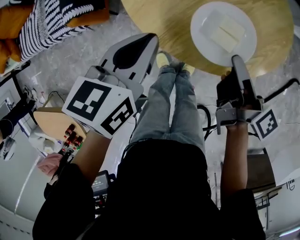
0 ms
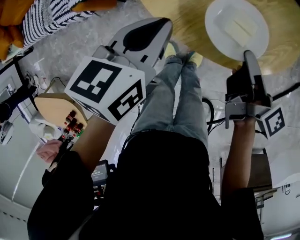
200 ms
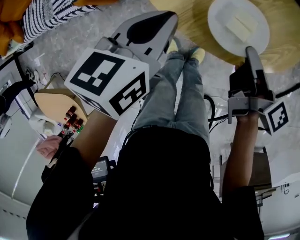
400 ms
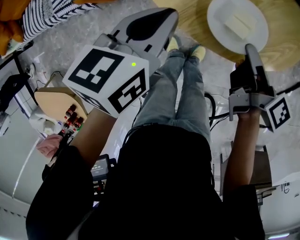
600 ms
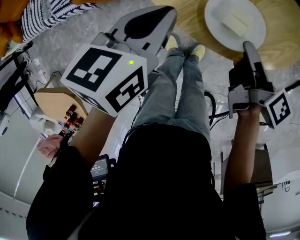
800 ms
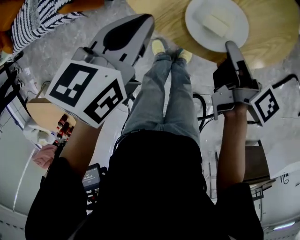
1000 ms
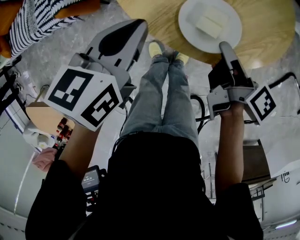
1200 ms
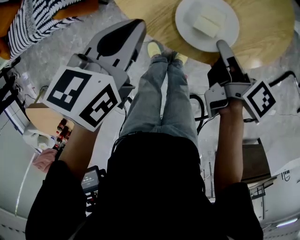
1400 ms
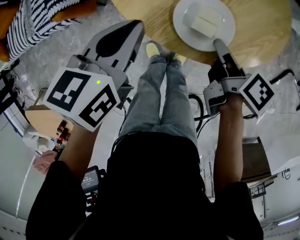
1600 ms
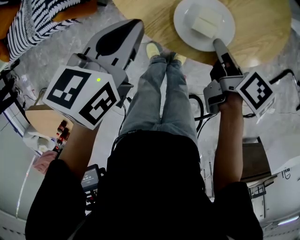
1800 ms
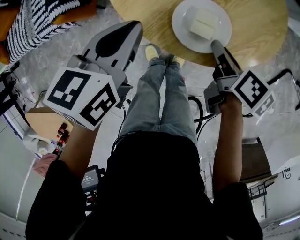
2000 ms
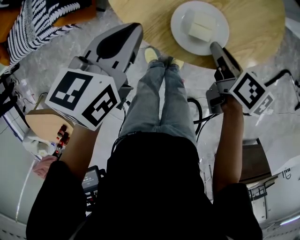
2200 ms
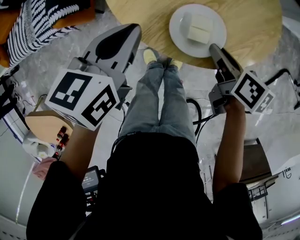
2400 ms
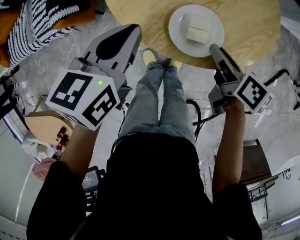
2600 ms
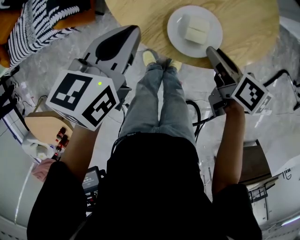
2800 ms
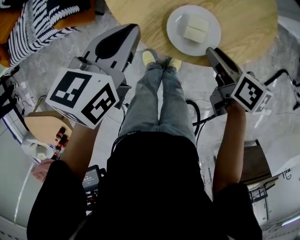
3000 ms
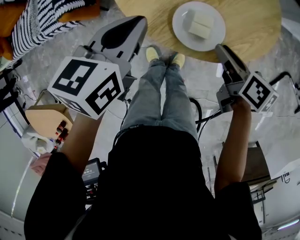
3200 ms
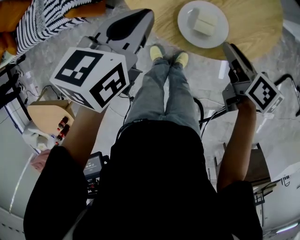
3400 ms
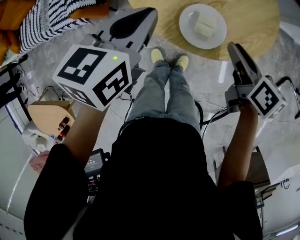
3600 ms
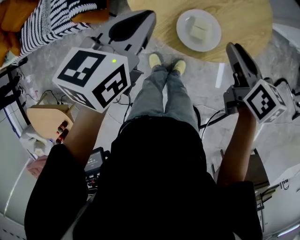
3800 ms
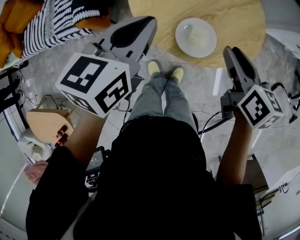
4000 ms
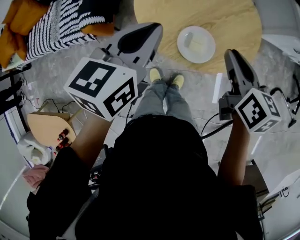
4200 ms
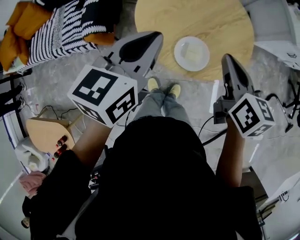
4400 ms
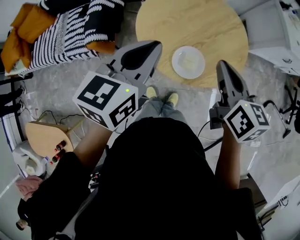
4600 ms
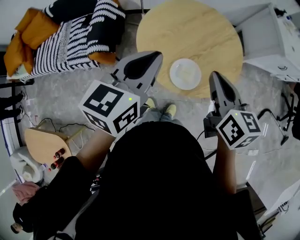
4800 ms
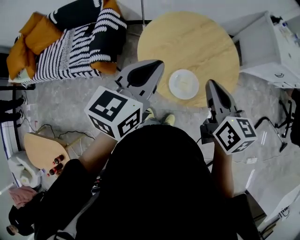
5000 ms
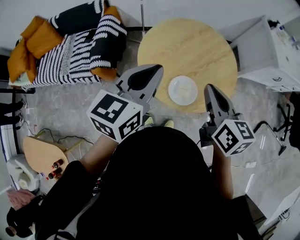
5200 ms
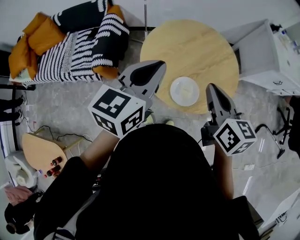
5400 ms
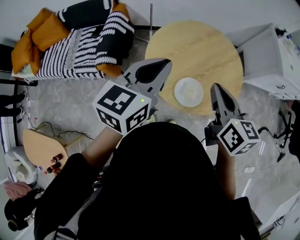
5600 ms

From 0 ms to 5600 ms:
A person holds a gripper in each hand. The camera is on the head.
From 0 ms to 1400 ms: There are only small adjustments of the grippers.
From 1400 ms to 2800 ms: The right gripper changes its angle by approximately 30 degrees, and opens up.
From 2800 ms to 4200 ms: Both grippers move upward, roughly 15 cm. The right gripper swivels about 30 degrees.
From 4200 ms to 5600 ms: Both grippers move upward, about 10 cm.

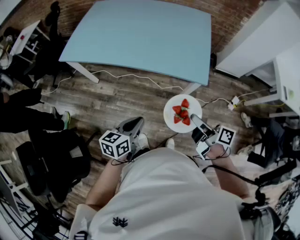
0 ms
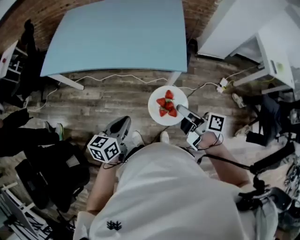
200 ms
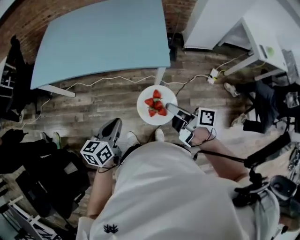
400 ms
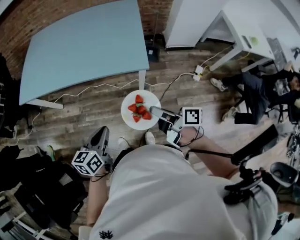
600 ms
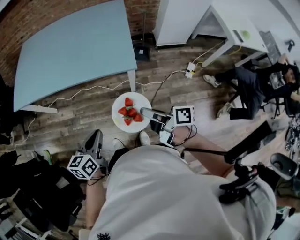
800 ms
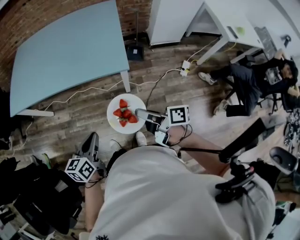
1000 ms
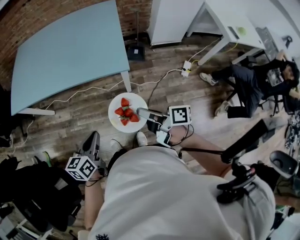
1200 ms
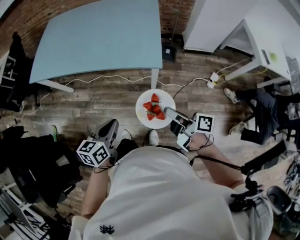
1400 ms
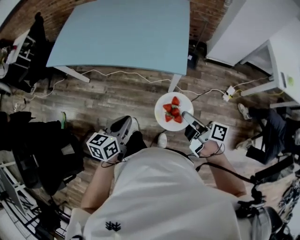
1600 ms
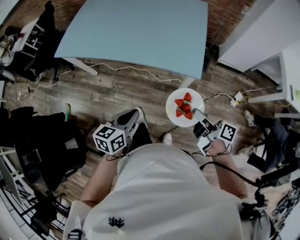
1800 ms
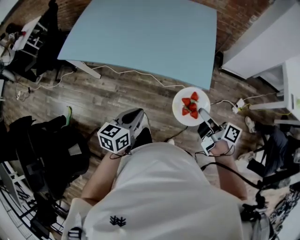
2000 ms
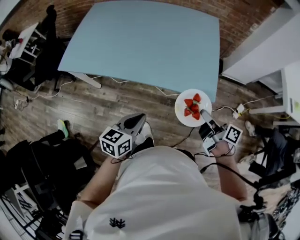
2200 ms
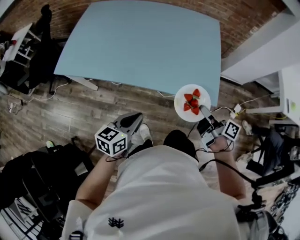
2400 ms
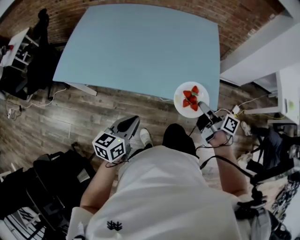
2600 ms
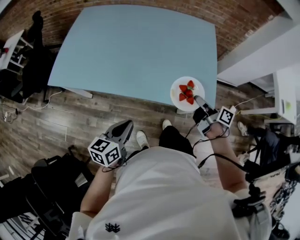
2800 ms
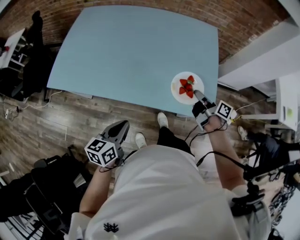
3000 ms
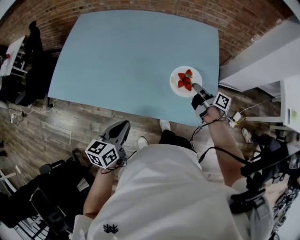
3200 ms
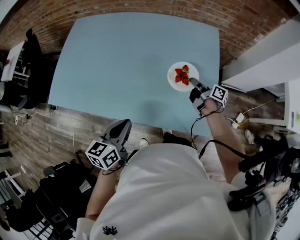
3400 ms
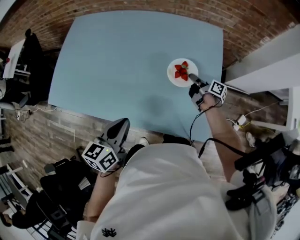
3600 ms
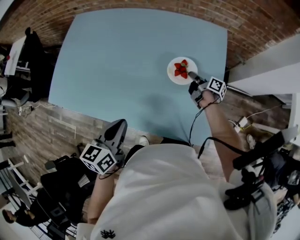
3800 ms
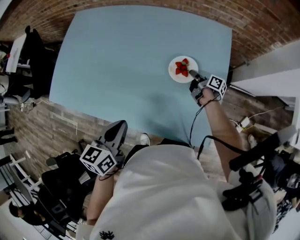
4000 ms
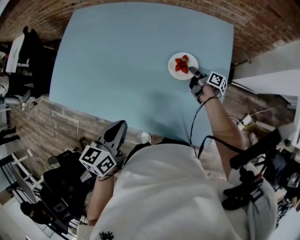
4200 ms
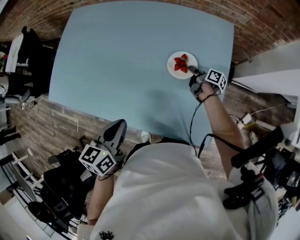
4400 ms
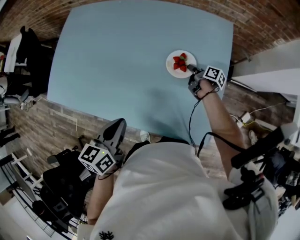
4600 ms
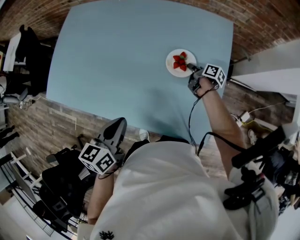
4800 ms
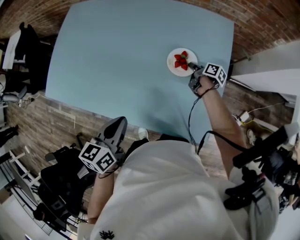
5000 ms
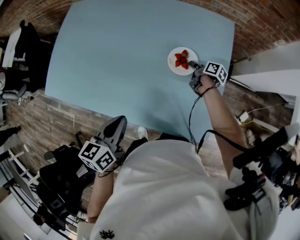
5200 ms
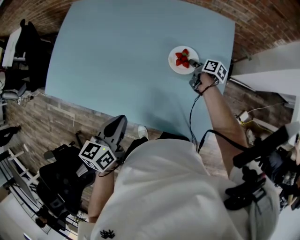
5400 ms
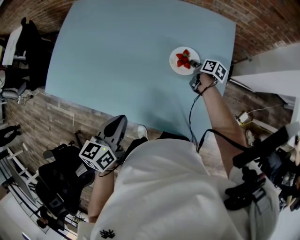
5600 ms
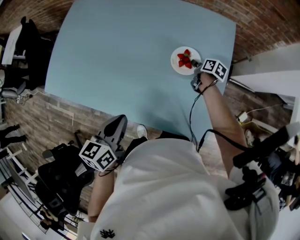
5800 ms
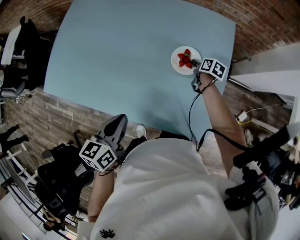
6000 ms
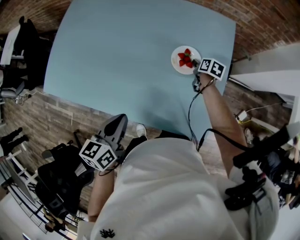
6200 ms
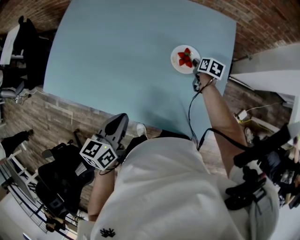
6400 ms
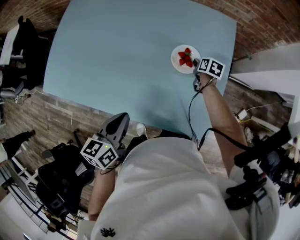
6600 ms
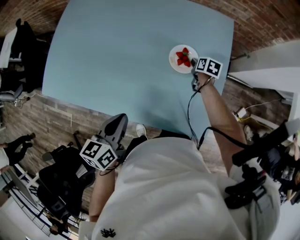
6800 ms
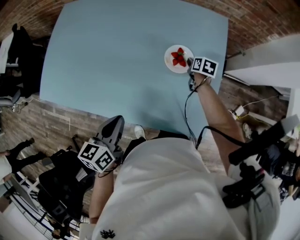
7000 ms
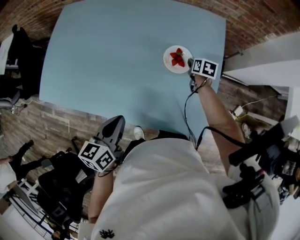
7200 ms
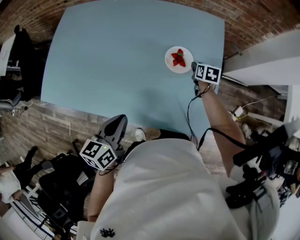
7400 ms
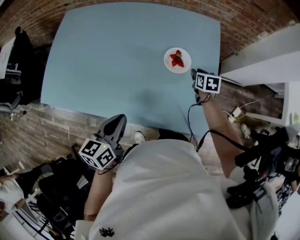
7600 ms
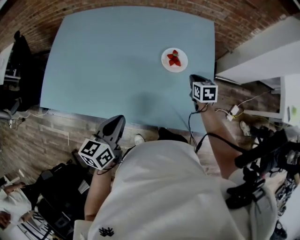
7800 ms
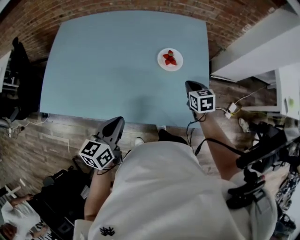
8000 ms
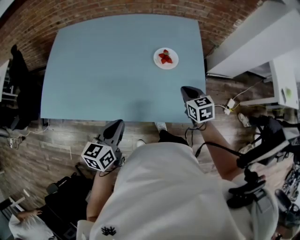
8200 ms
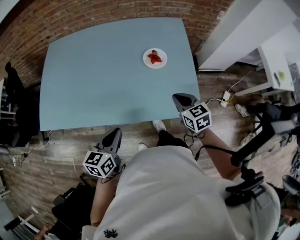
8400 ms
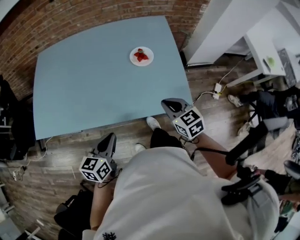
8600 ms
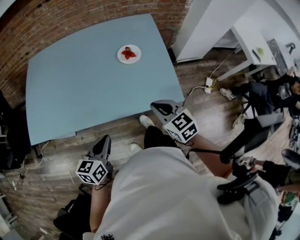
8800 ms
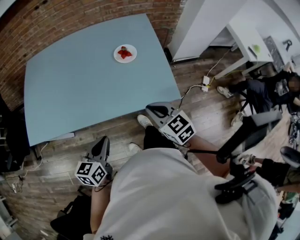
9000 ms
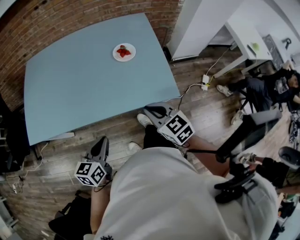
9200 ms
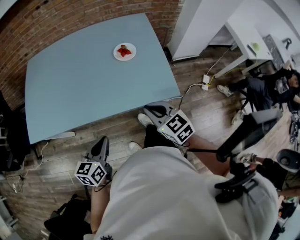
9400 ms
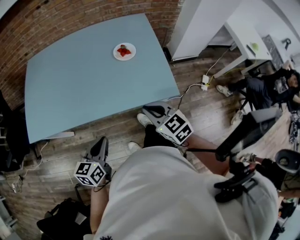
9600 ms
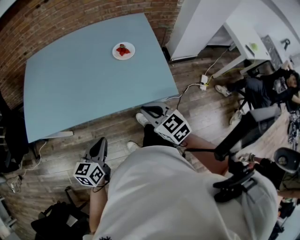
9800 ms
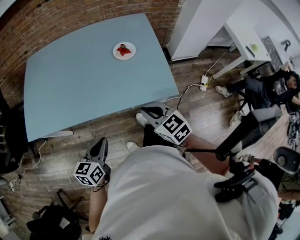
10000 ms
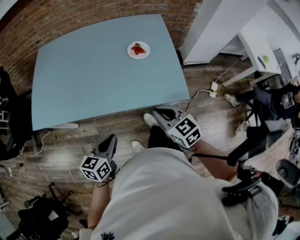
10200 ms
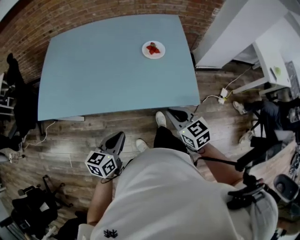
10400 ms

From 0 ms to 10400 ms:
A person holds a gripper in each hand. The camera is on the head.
From 0 ms to 1400 ms: Both grippers travel together to the right, roughly 15 cm.
From 1400 ms to 3000 ms: The right gripper moves forward, approximately 40 cm. Meanwhile the left gripper travels forward and to the left by about 35 cm.
From 3000 ms to 4400 ms: The right gripper shifts roughly 30 cm forward and downward. The left gripper moves forward and to the right, roughly 20 cm.
From 4400 ms to 6000 ms: The right gripper swivels about 40 degrees, and opens its fingers.
From 6000 ms to 7400 ms: The right gripper shifts by roughly 5 cm, and rotates about 20 degrees.
From 7400 ms to 9000 ms: The right gripper shifts approximately 50 cm backward and upward, rotates roughly 40 degrees, and closes, while the left gripper travels backward by approximately 15 cm.
From 9000 ms to 10400 ms: The grippers stay close to where they were, moving slightly.

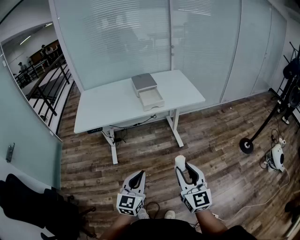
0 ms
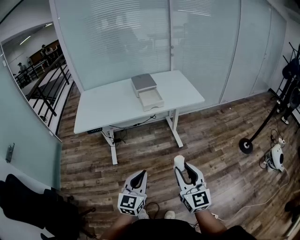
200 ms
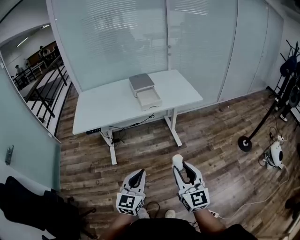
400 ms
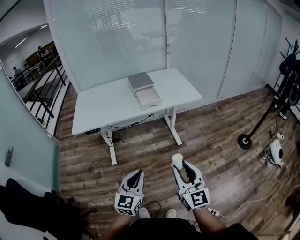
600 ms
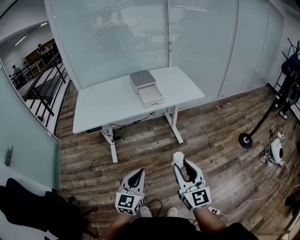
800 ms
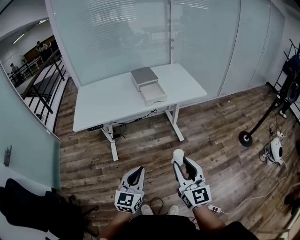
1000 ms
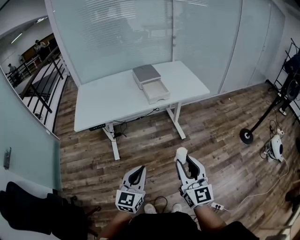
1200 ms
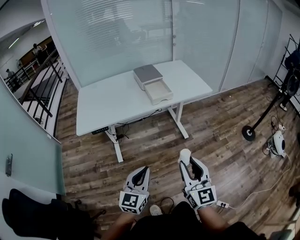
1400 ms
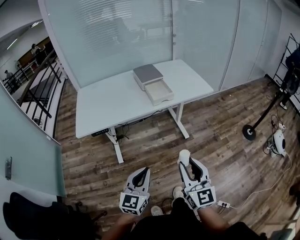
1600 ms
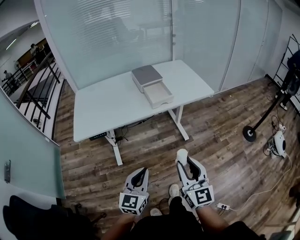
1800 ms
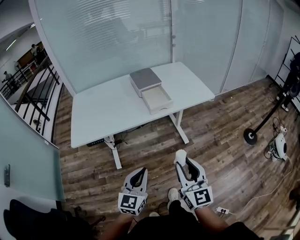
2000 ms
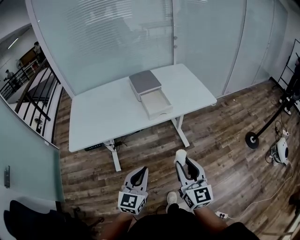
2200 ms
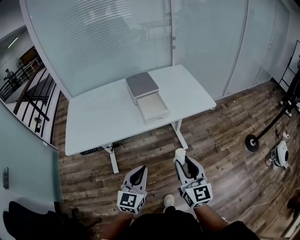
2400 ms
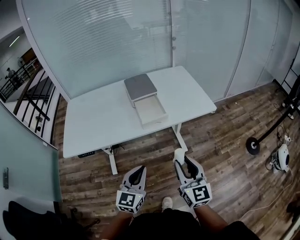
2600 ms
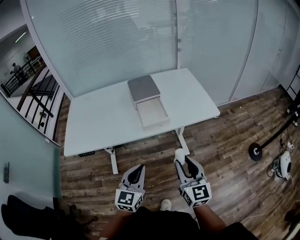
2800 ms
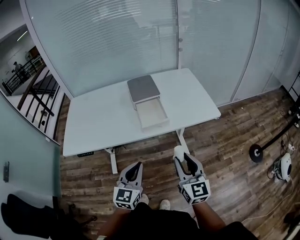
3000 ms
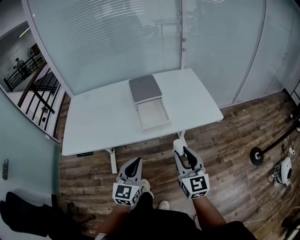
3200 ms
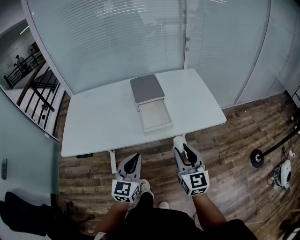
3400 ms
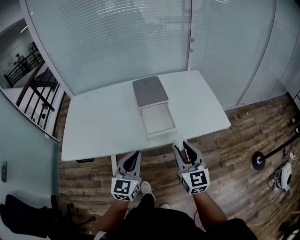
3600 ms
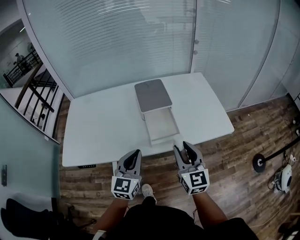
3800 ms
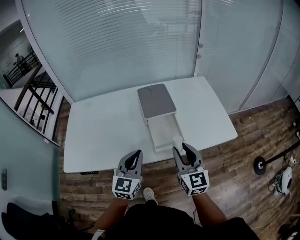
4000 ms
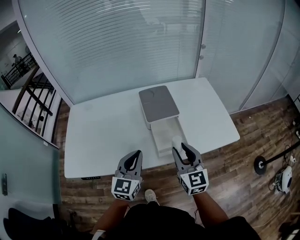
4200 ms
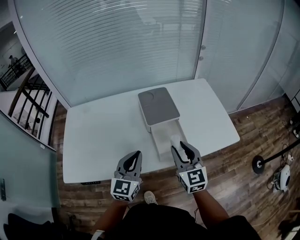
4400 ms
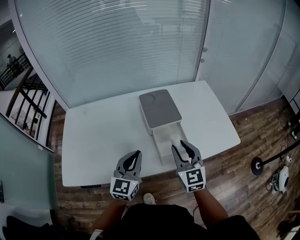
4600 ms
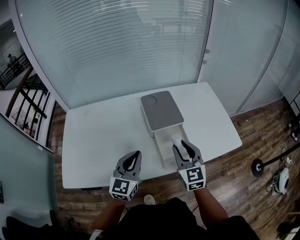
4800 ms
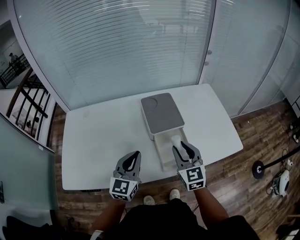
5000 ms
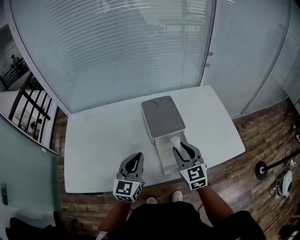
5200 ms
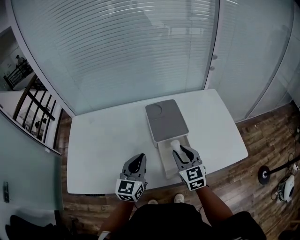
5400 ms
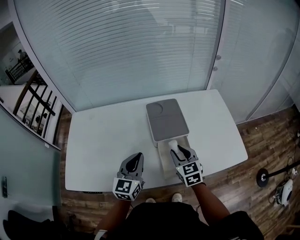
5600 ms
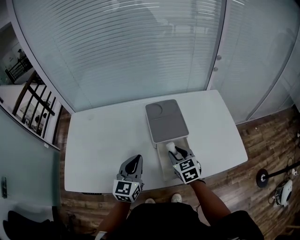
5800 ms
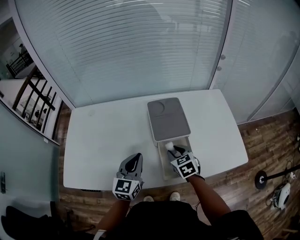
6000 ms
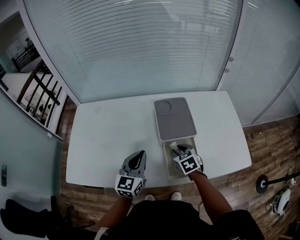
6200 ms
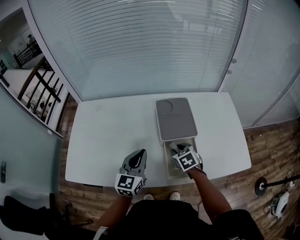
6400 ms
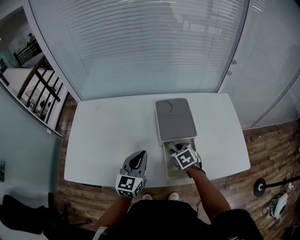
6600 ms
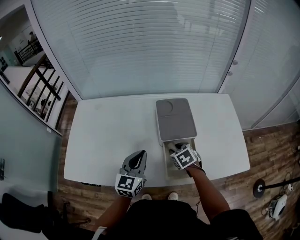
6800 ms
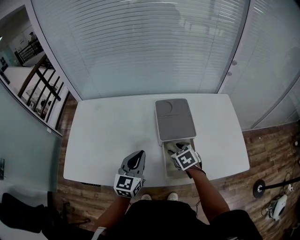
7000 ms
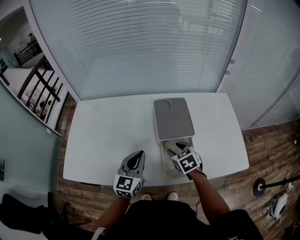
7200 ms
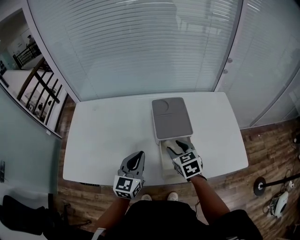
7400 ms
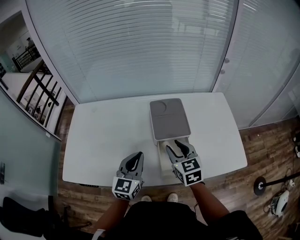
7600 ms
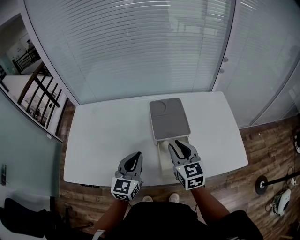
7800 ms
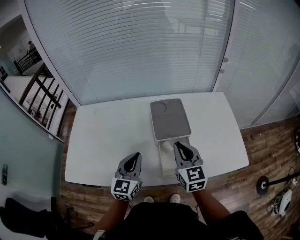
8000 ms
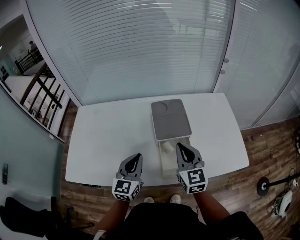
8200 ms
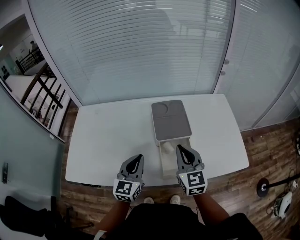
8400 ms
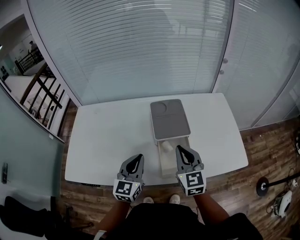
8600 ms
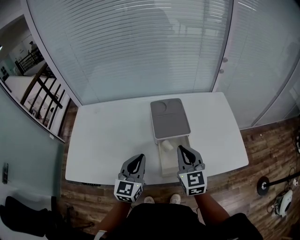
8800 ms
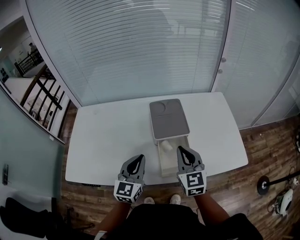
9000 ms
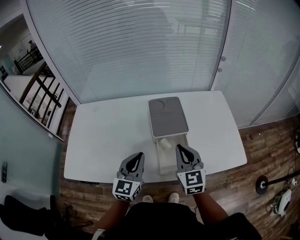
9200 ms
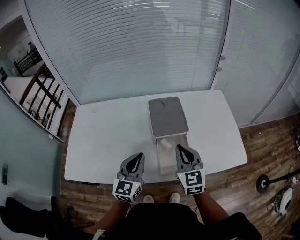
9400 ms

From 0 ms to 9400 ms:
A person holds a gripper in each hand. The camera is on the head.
From 0 ms to 1600 ms: Both grippers move to the left, roughly 10 cm.
From 1600 ms to 3200 ms: Both grippers travel together forward, roughly 30 cm.
From 3200 ms to 4800 ms: Both grippers travel together forward and to the left, roughly 25 cm.
From 4800 ms to 6200 ms: The right gripper goes roughly 15 cm downward and forward, and points its fingers approximately 40 degrees further downward. The left gripper goes some 5 cm forward.
From 6200 ms to 7800 ms: The right gripper heads upward, covering approximately 15 cm, and tilts its fingers some 30 degrees upward.
From 7800 ms to 9400 ms: The right gripper closes up.
